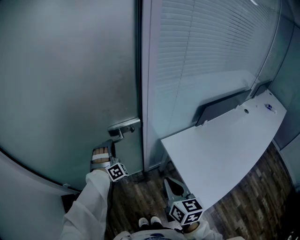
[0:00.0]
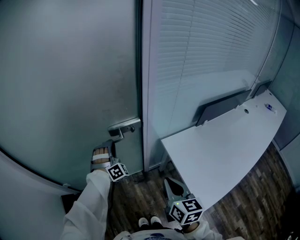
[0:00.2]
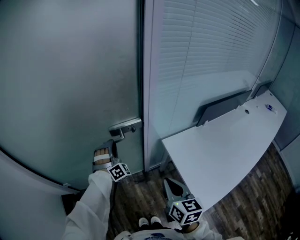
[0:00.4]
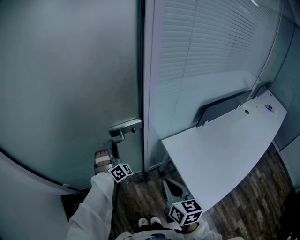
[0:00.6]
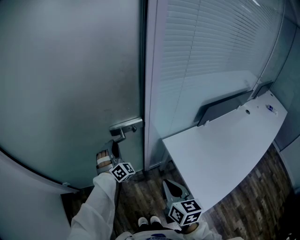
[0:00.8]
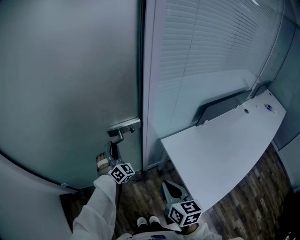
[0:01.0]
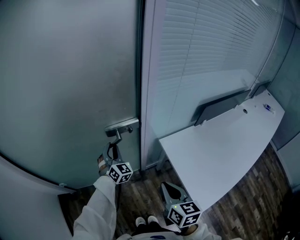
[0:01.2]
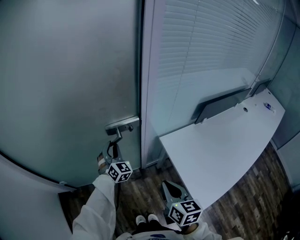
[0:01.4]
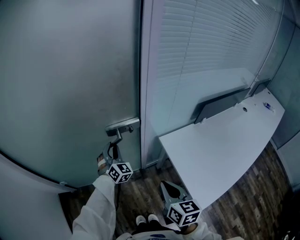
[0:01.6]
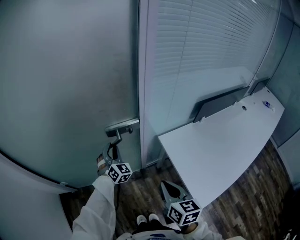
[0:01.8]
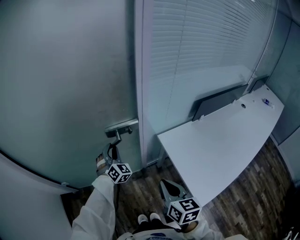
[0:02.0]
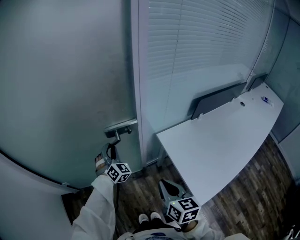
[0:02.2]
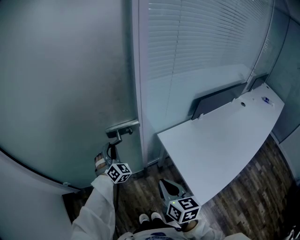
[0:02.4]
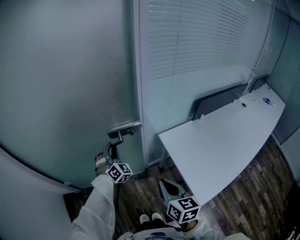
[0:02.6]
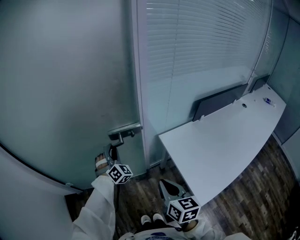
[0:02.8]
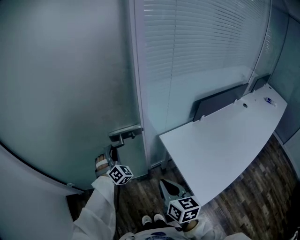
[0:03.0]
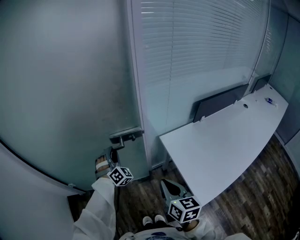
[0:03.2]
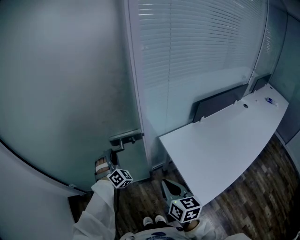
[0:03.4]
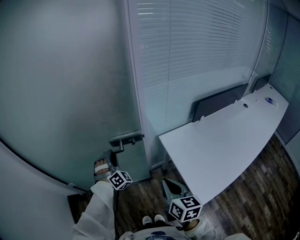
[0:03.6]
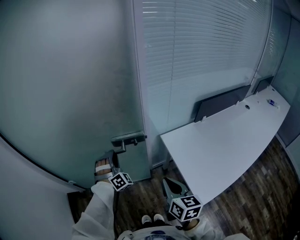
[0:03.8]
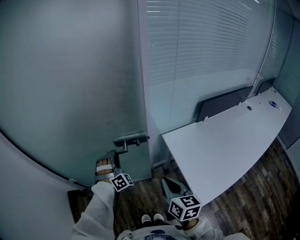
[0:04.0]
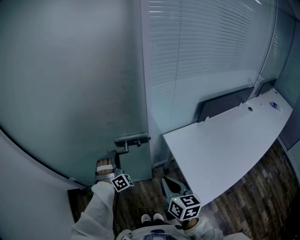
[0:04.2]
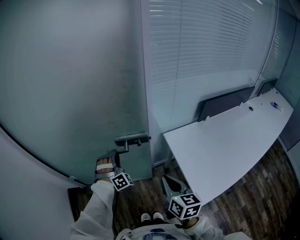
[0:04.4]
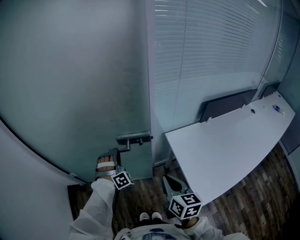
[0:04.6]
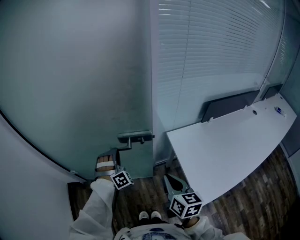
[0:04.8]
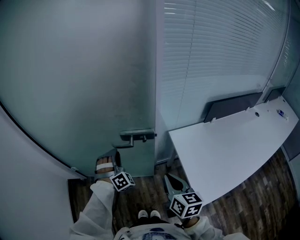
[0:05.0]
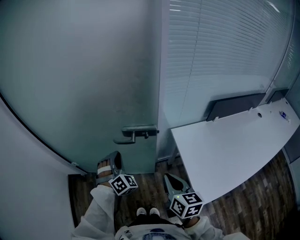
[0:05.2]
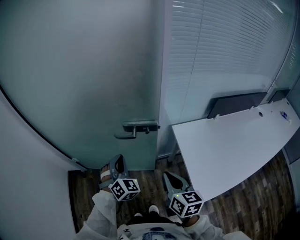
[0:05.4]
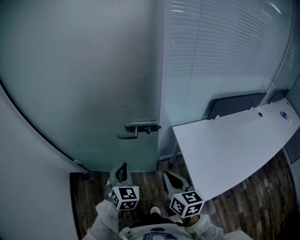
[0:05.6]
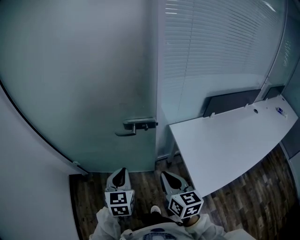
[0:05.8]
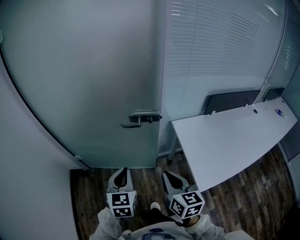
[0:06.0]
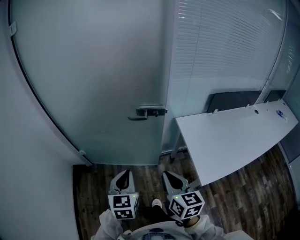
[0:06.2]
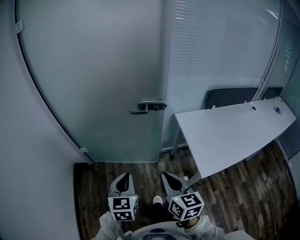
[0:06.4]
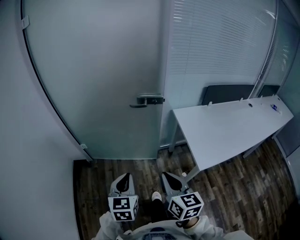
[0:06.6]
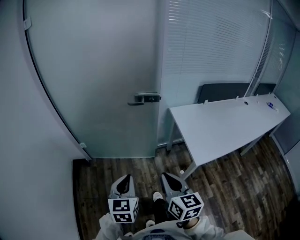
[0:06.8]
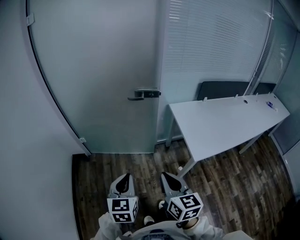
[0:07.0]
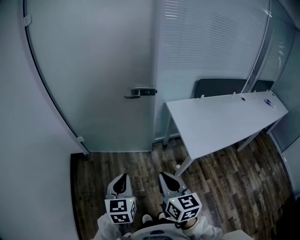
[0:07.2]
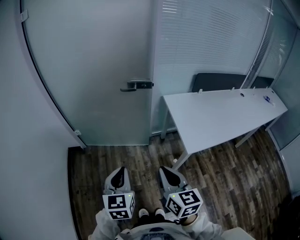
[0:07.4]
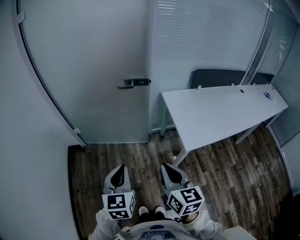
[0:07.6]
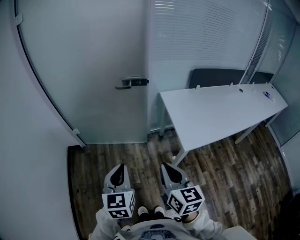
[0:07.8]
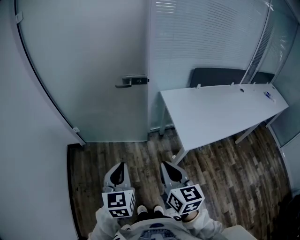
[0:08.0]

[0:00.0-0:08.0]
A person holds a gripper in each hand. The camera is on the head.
0:00.0 to 0:01.6: The left gripper changes its angle by some 40 degrees.
0:01.6 to 0:03.2: The left gripper heads backward, covering approximately 5 cm, and turns by some 20 degrees.
0:03.2 to 0:04.8: The left gripper shifts approximately 5 cm backward.
0:04.8 to 0:06.4: The left gripper travels backward by some 35 cm, and rotates around the line of its fingers by about 80 degrees, counterclockwise from behind. The right gripper is displaced backward and to the left by about 25 cm.
0:06.4 to 0:08.0: The two grippers go some 15 cm backward and to the right.

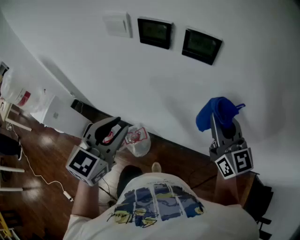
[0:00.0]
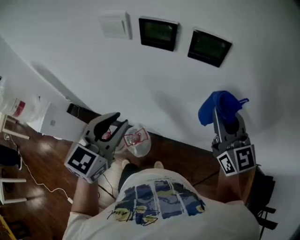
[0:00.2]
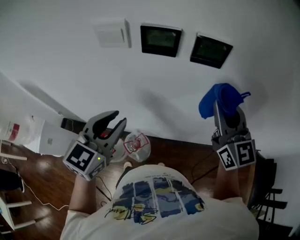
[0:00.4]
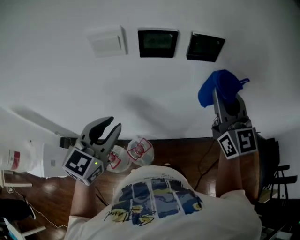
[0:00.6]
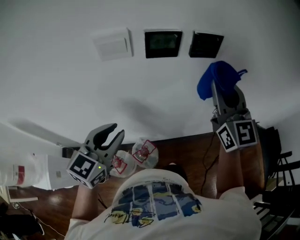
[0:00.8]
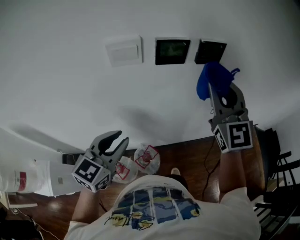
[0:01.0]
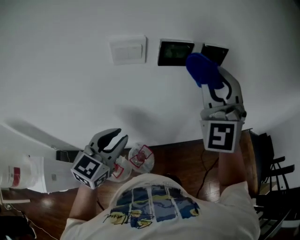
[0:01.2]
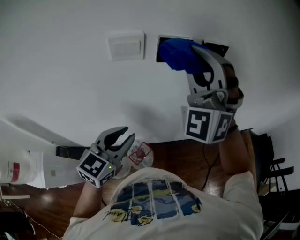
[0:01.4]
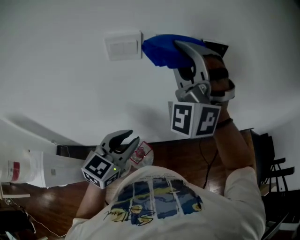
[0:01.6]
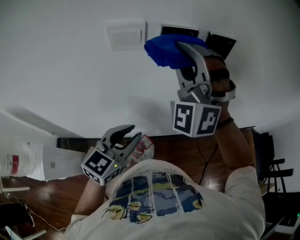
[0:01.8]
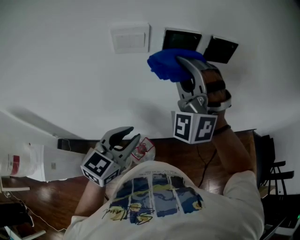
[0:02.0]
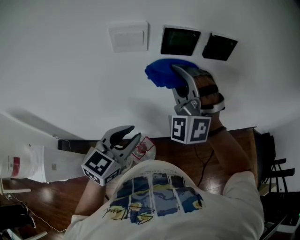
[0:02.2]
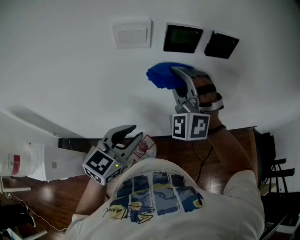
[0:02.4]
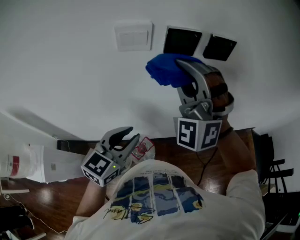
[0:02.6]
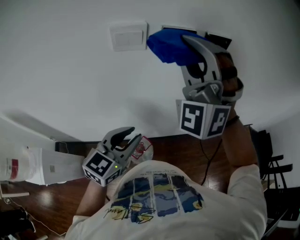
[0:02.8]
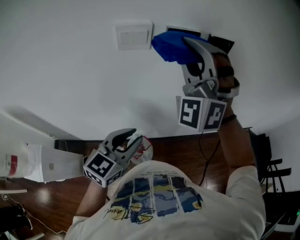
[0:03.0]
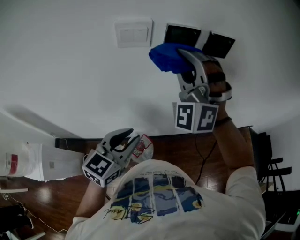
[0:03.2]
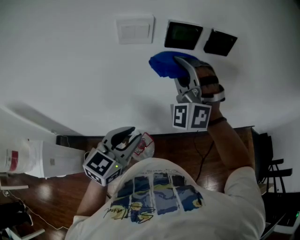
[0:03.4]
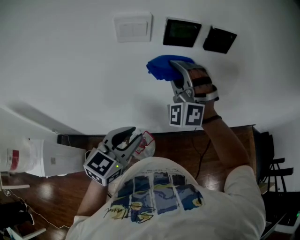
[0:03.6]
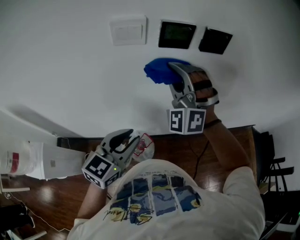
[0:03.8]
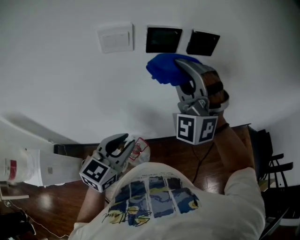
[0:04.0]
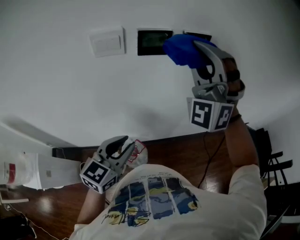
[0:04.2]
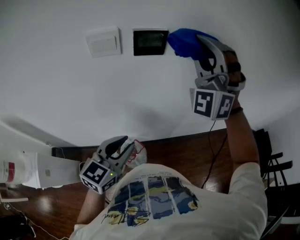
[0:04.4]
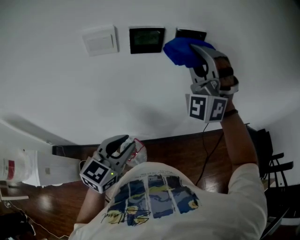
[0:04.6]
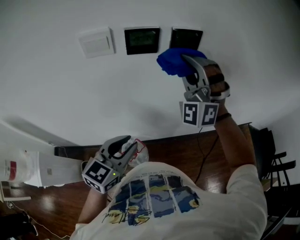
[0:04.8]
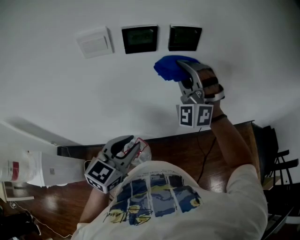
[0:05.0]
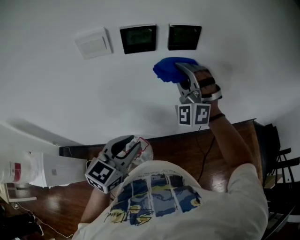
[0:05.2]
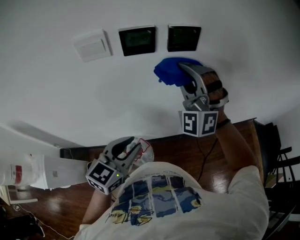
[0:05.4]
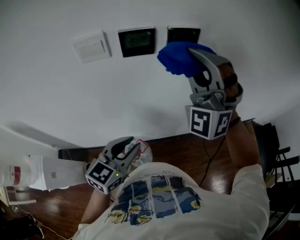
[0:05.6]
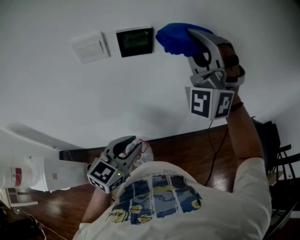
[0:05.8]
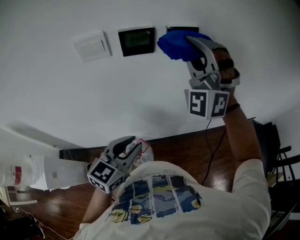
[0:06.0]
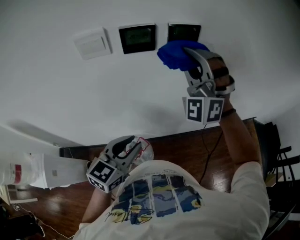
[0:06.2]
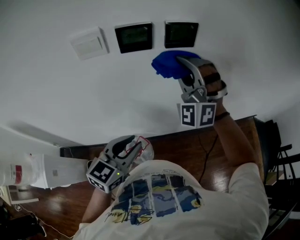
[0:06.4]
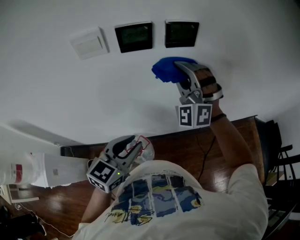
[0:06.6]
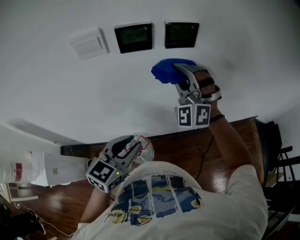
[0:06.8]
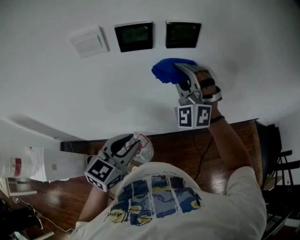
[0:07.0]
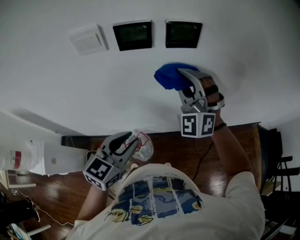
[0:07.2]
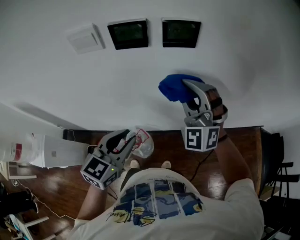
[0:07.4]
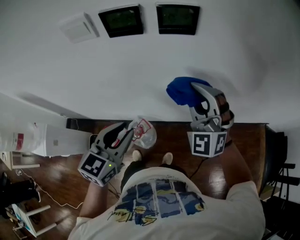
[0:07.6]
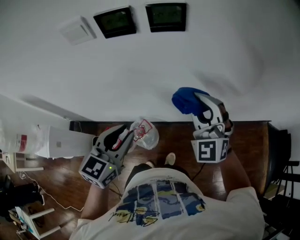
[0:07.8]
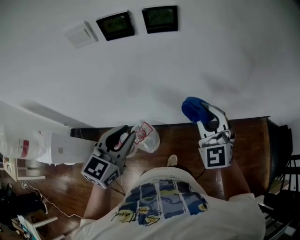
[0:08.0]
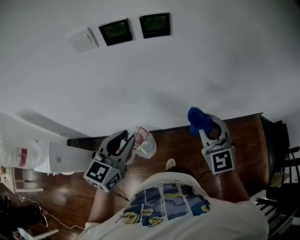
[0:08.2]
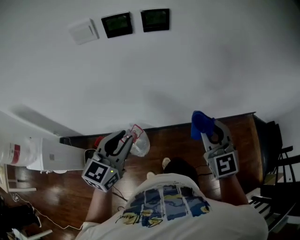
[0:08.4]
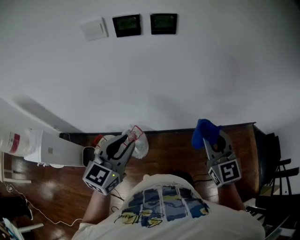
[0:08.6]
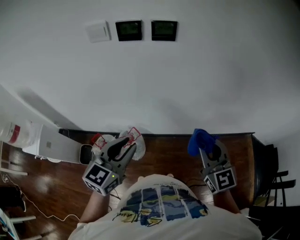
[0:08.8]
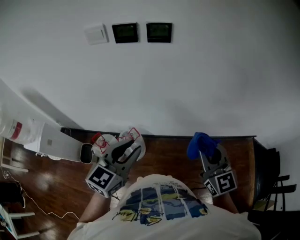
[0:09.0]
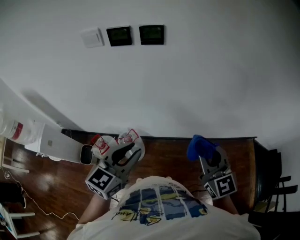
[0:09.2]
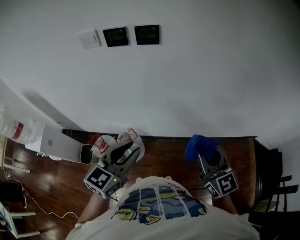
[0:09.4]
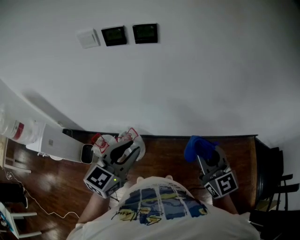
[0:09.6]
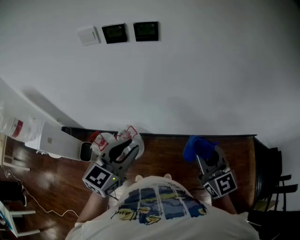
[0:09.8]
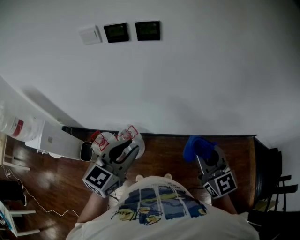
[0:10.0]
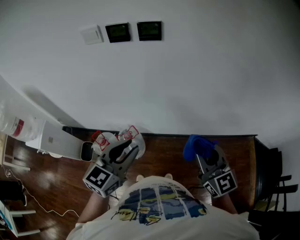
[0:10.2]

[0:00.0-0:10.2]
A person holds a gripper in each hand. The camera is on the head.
0:00.0 to 0:01.4: The left gripper moves approximately 15 cm, and rotates roughly 30 degrees. Meanwhile the right gripper moves roughly 30 cm, and twists approximately 70 degrees counterclockwise, seen from behind.
0:01.4 to 0:03.0: The right gripper reaches some 15 cm downward, then returns.
0:03.0 to 0:04.4: The right gripper shifts roughly 10 cm to the right, and moves about 15 cm downward and comes back.
0:04.4 to 0:05.8: The right gripper travels downward and back again, approximately 15 cm each way.
0:05.8 to 0:07.2: The right gripper heads downward, covering about 15 cm, and swivels some 20 degrees.
0:07.2 to 0:08.8: The left gripper travels backward and to the right by some 15 cm; the right gripper is displaced backward and to the right by approximately 30 cm, and twists approximately 60 degrees clockwise, seen from behind.
0:08.8 to 0:10.2: The right gripper changes place by approximately 5 cm, while the left gripper moves to the right, roughly 5 cm.

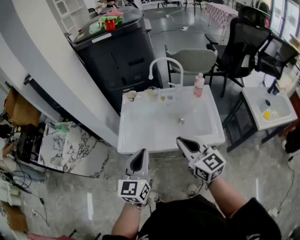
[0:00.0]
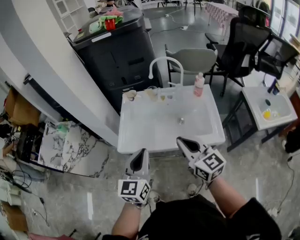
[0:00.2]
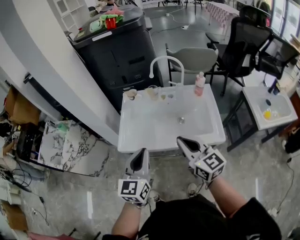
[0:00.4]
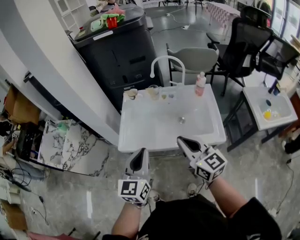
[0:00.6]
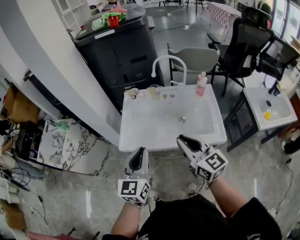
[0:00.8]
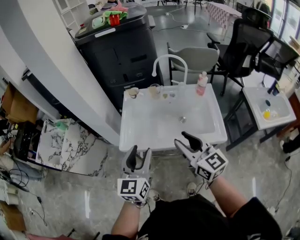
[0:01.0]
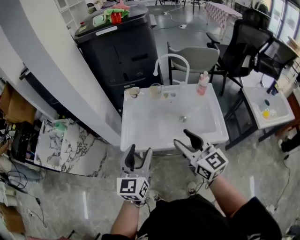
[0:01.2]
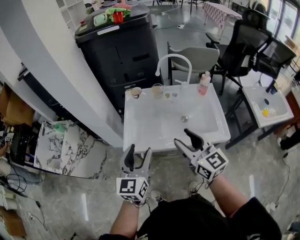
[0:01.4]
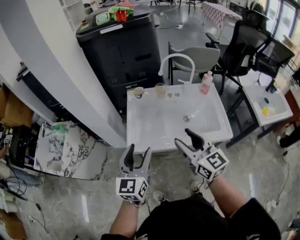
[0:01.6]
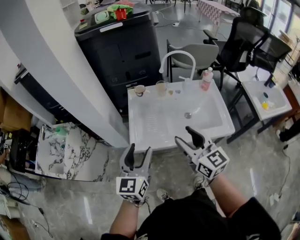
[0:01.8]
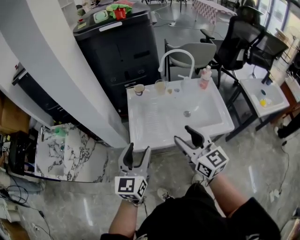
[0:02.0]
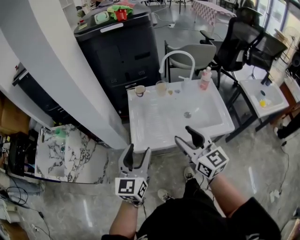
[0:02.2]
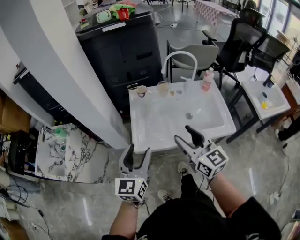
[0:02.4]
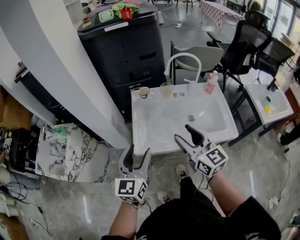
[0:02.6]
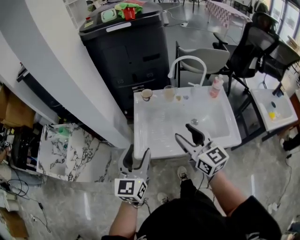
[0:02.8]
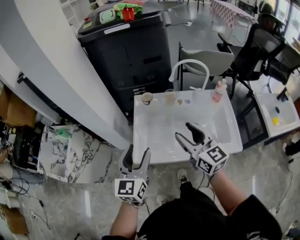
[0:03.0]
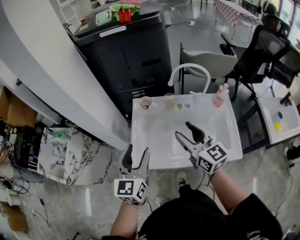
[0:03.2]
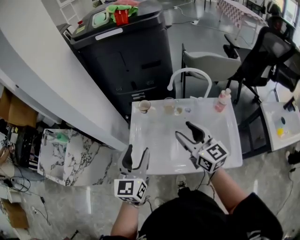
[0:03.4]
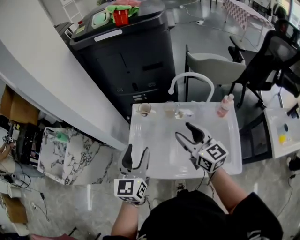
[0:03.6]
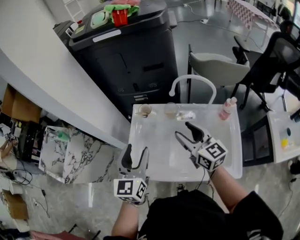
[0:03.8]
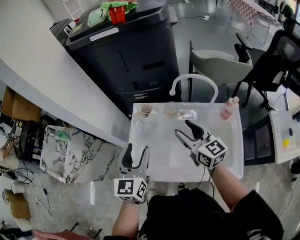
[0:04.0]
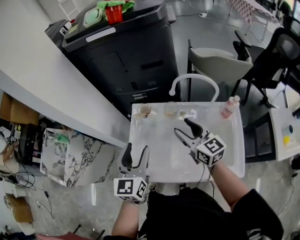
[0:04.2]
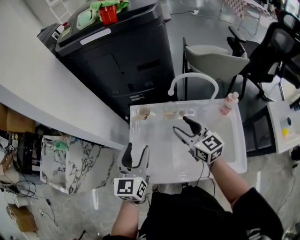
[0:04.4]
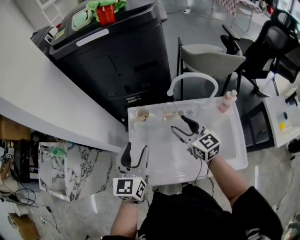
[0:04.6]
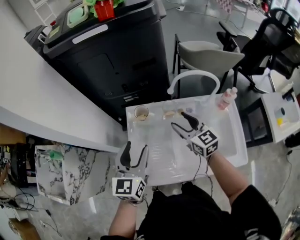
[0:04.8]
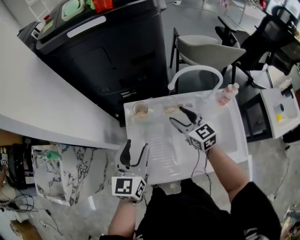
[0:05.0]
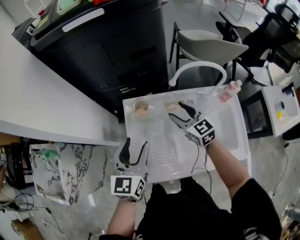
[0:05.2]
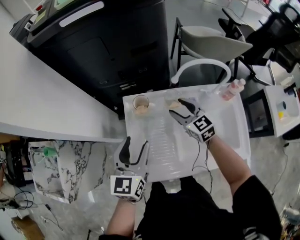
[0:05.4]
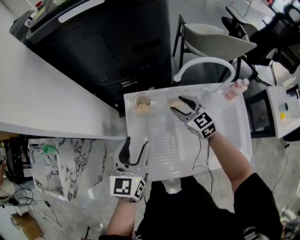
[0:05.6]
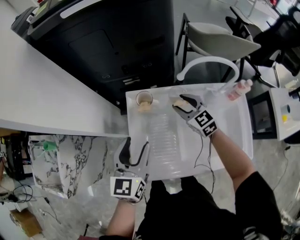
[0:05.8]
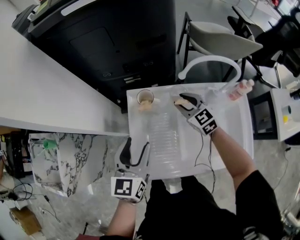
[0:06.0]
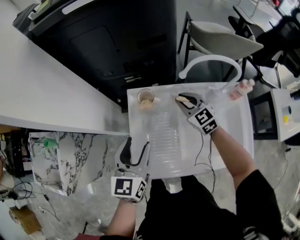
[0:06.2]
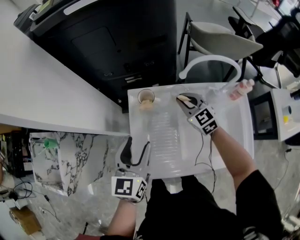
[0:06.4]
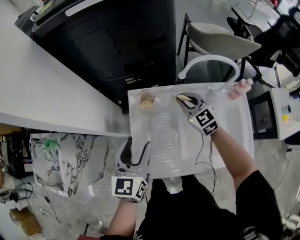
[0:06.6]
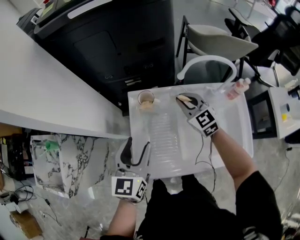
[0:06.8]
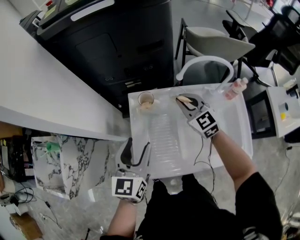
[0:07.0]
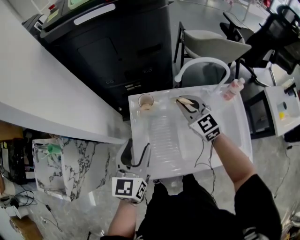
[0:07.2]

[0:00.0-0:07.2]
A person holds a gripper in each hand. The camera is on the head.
0:00.0 to 0:01.4: The grippers both shift to the left by roughly 5 cm. The right gripper opens up. Meanwhile the left gripper opens.
0:01.4 to 0:02.8: The right gripper moves forward and to the left, about 10 cm. The left gripper heads to the left and forward, covering some 10 cm.
0:02.8 to 0:04.4: Both grippers move forward and to the right, about 25 cm.
0:04.4 to 0:05.8: The left gripper heads downward, covering roughly 5 cm, while the right gripper travels downward and forward by roughly 15 cm, and rotates roughly 20 degrees.
0:05.8 to 0:07.2: The right gripper is displaced upward by some 10 cm, and closes up.
